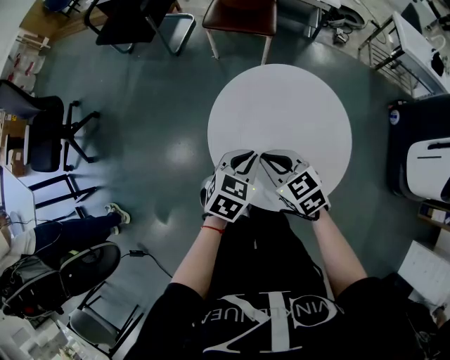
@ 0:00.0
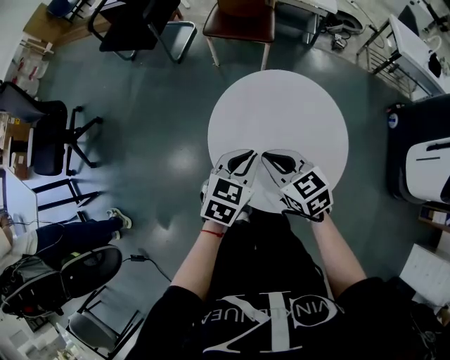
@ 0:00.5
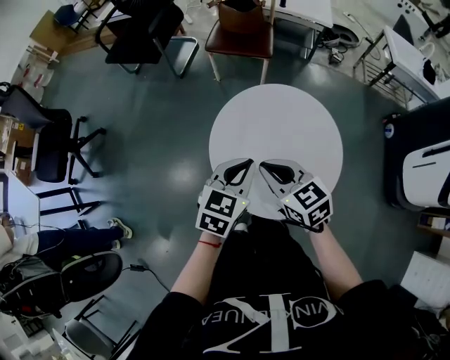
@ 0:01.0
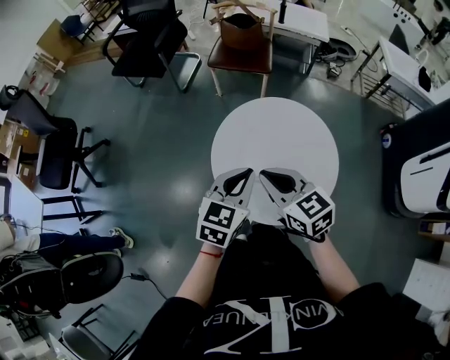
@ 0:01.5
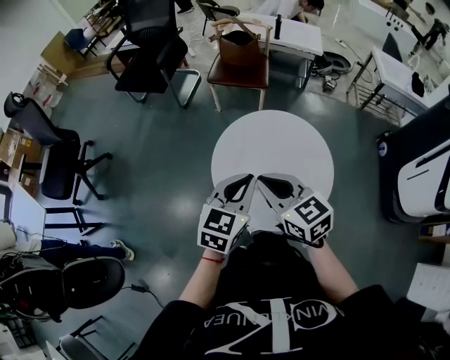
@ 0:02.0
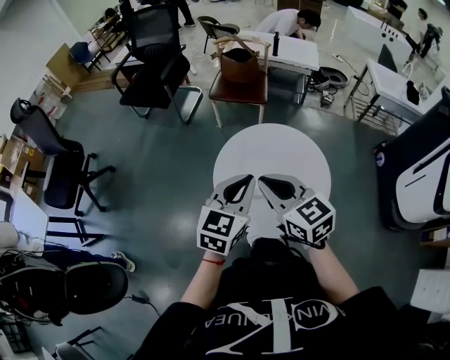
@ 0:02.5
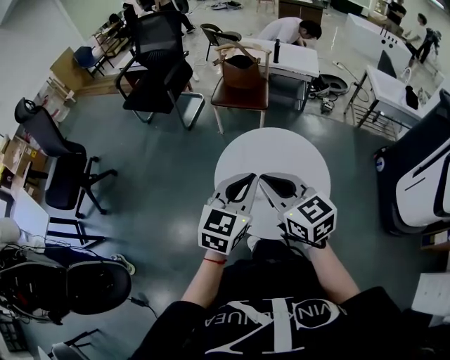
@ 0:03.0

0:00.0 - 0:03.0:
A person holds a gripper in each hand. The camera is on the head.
0:00.0 - 0:01.5: The grippers both shift upward by roughly 15 cm.
0:01.5 - 0:03.0: The grippers both shift upward by approximately 10 cm.

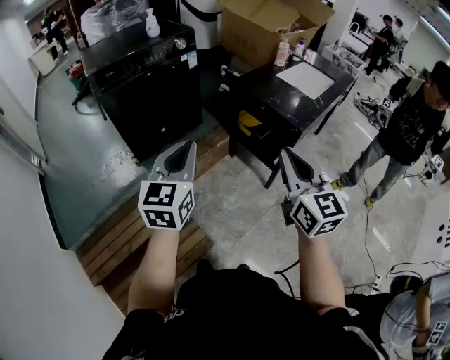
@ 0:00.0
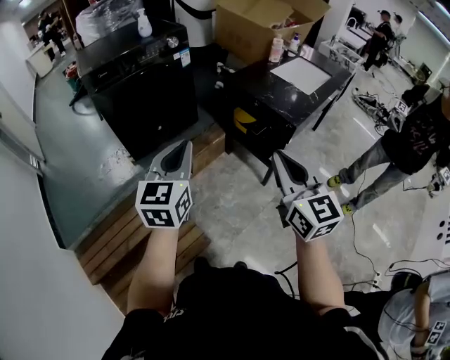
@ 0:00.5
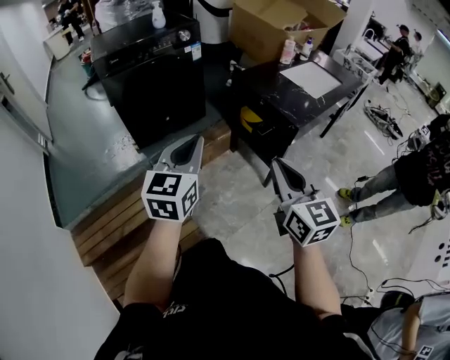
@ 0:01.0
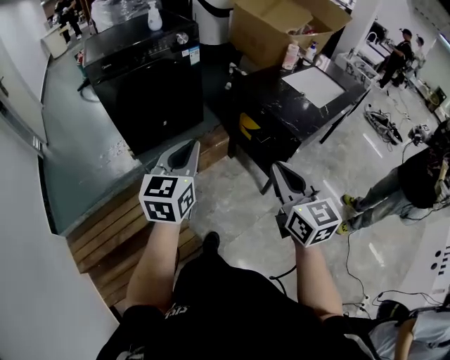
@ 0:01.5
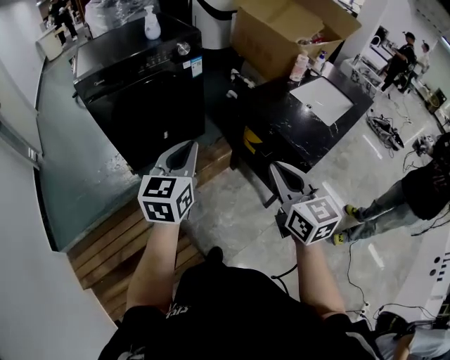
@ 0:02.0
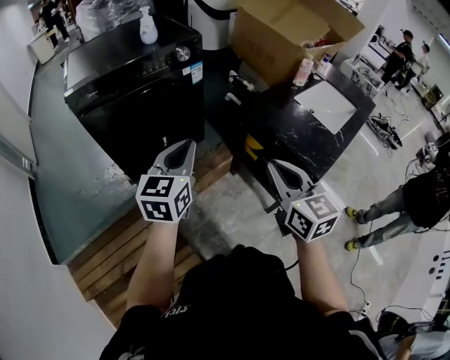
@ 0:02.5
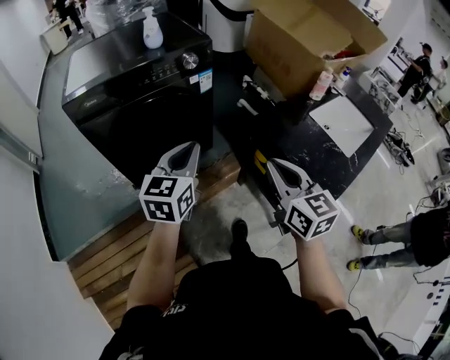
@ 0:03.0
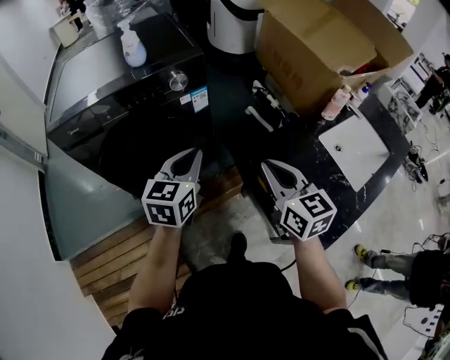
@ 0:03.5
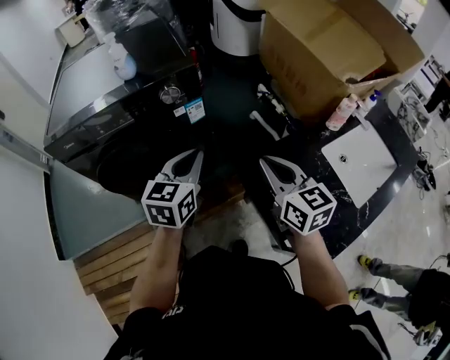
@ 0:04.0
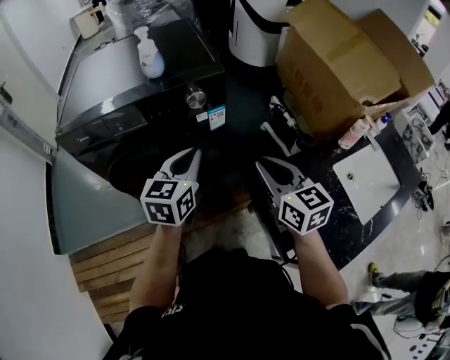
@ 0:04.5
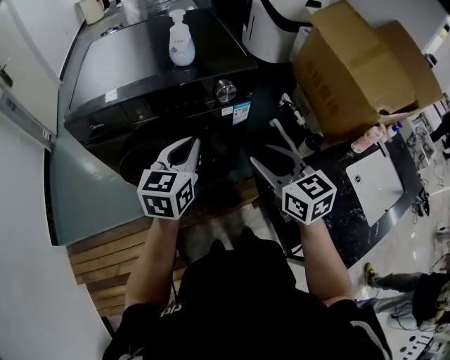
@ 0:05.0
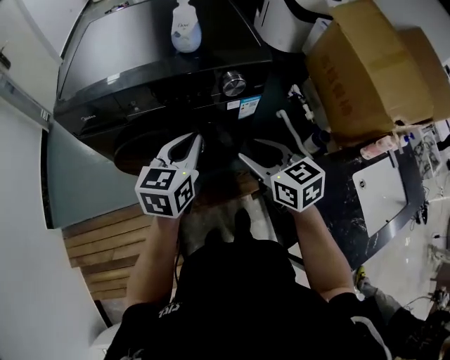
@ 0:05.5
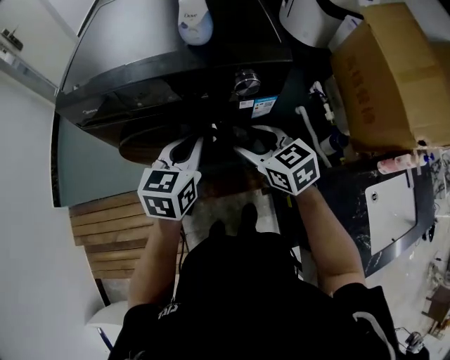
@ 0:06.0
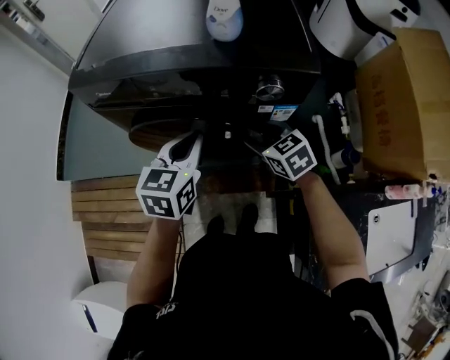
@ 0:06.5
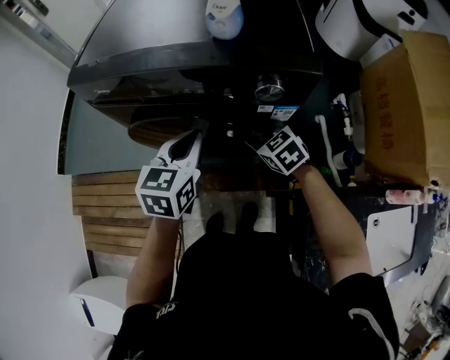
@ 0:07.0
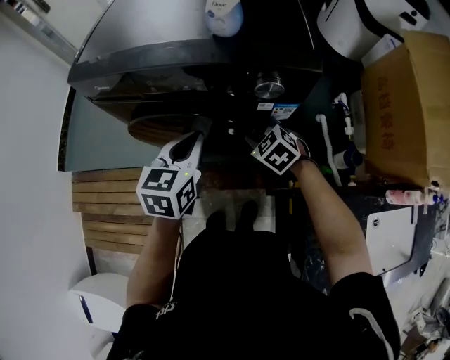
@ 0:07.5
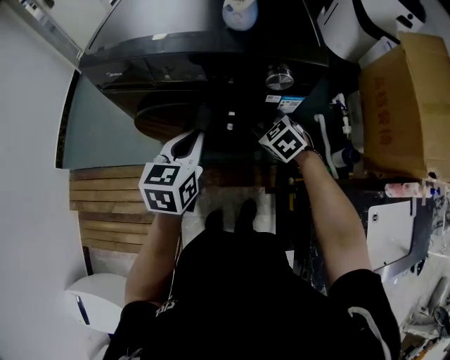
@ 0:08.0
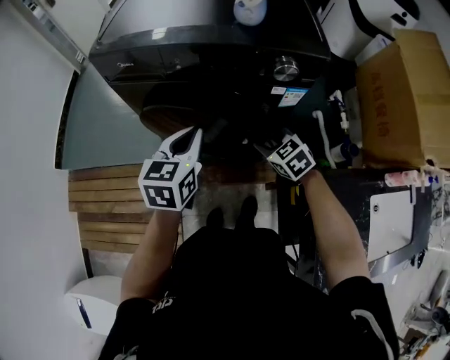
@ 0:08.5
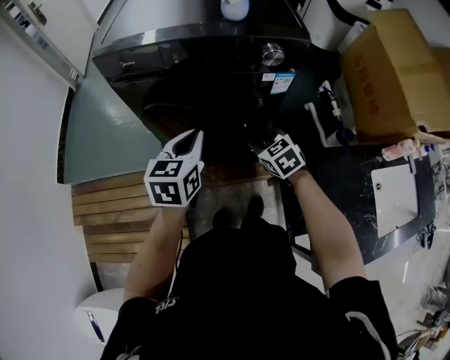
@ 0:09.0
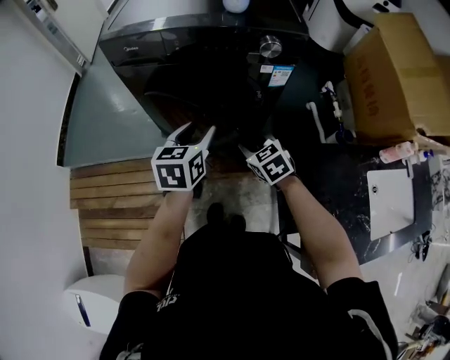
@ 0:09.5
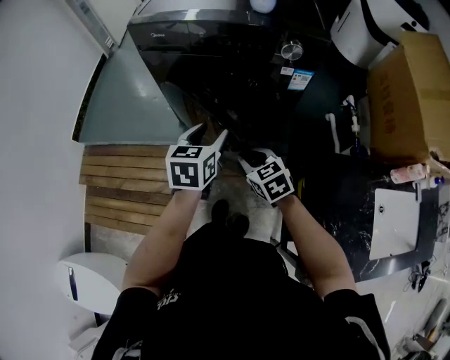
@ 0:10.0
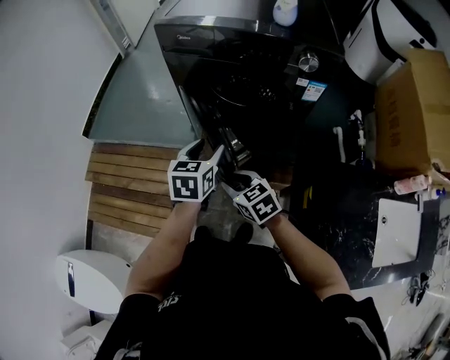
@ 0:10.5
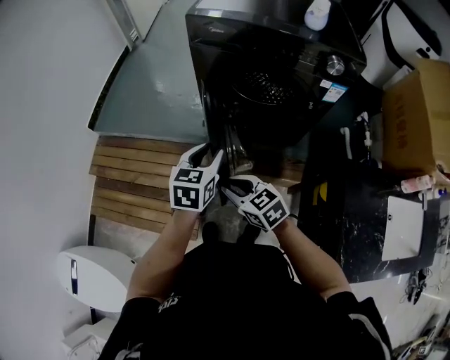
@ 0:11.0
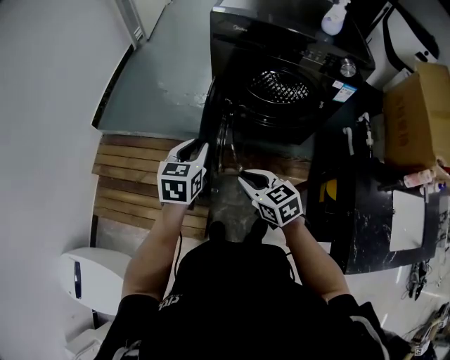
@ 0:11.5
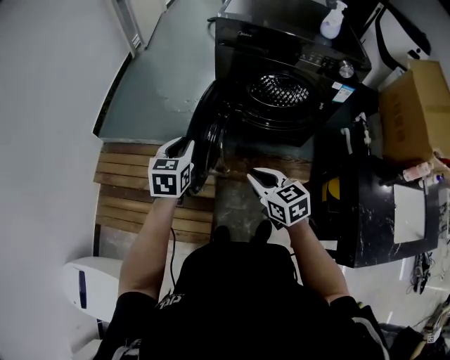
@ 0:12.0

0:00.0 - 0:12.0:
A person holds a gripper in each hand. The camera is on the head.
0:00.0 - 0:02.0: The two grippers go approximately 15 cm forward.
0:02.0 - 0:04.0: The two grippers go some 35 cm forward.
0:04.0 - 0:06.0: The left gripper moves to the left and forward, roughly 20 cm, while the right gripper is displaced to the left, forward and downward by about 30 cm, changes its angle by some 40 degrees, and opens up.
0:06.0 - 0:08.0: The left gripper moves to the left, roughly 5 cm, while the right gripper goes some 10 cm downward and forward, and swivels roughly 30 degrees.
0:08.0 - 0:10.0: The right gripper shifts roughly 25 cm backward and to the left; the left gripper goes approximately 10 cm backward, and opens up.
0:10.0 - 0:12.0: The grippers both shift to the left by approximately 30 cm. The left gripper closes up.

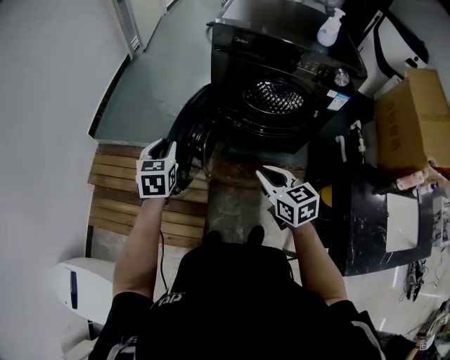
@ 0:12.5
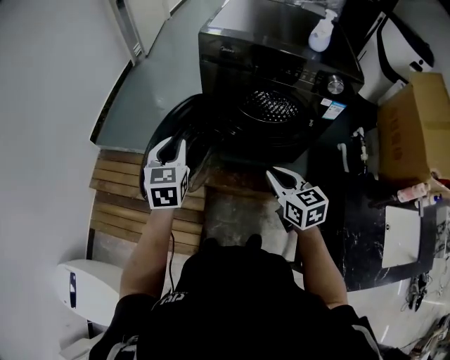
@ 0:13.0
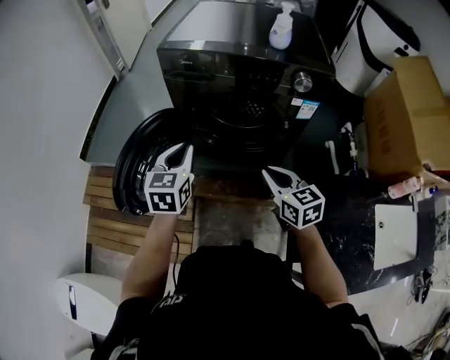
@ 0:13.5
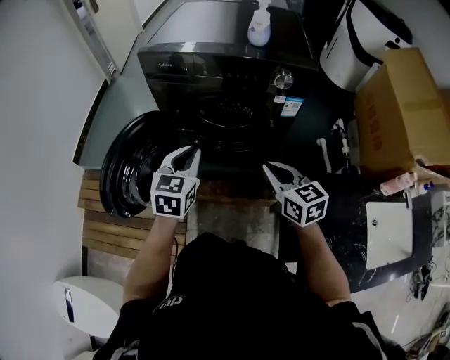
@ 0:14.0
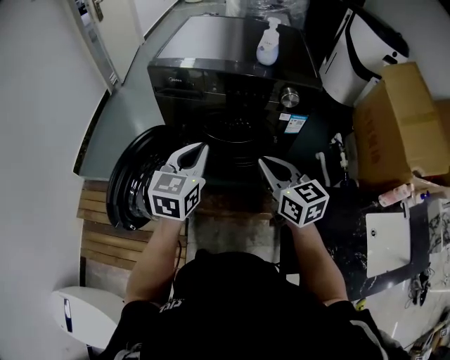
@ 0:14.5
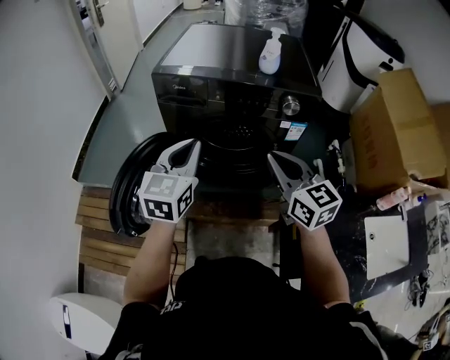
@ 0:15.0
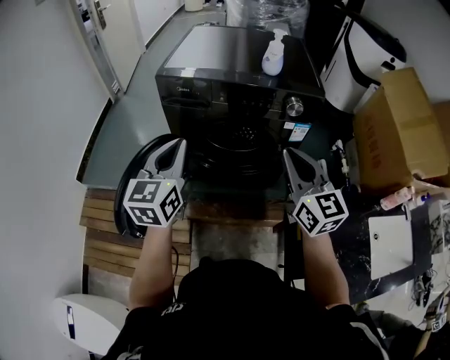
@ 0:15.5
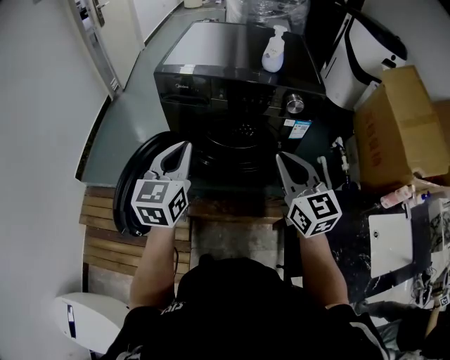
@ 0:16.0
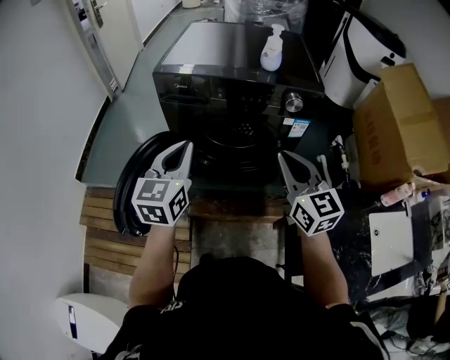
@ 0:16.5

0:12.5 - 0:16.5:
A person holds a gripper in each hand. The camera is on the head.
0:12.5 - 0:14.5: The left gripper moves to the right and upward, some 35 cm, swivels about 30 degrees, and closes up; the right gripper travels to the right, upward and forward by some 25 cm.
0:14.5 - 0:16.5: The right gripper shifts some 5 cm upward. The left gripper shifts approximately 5 cm to the left.

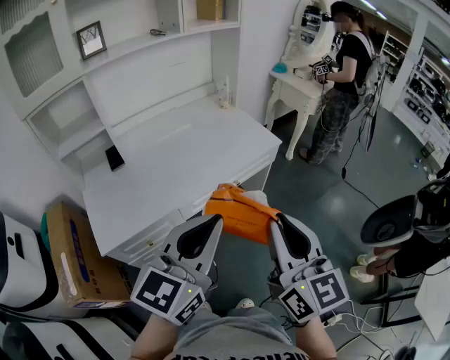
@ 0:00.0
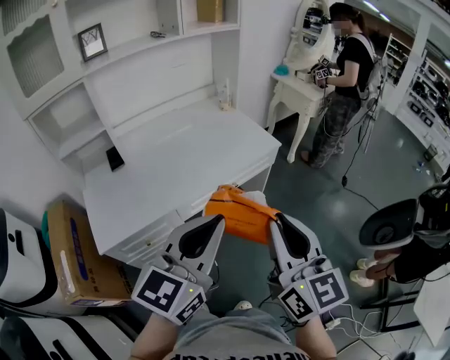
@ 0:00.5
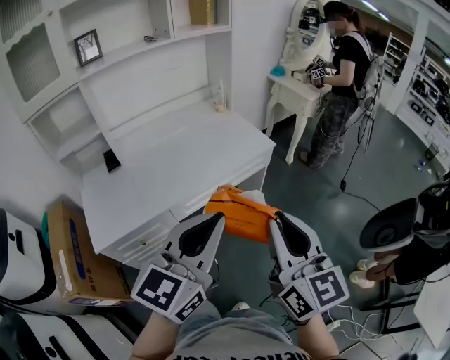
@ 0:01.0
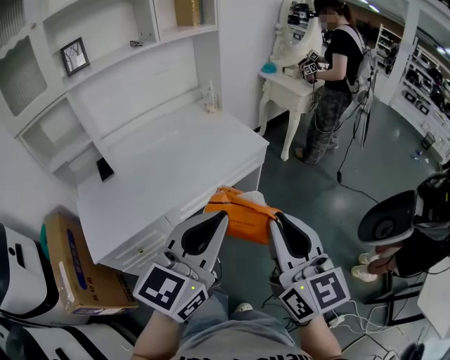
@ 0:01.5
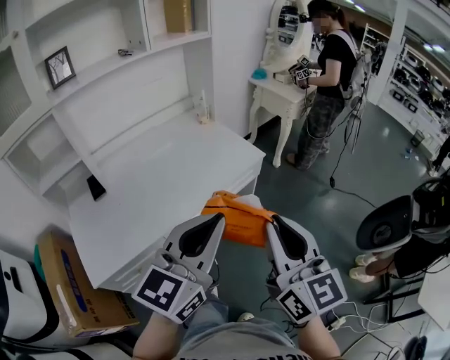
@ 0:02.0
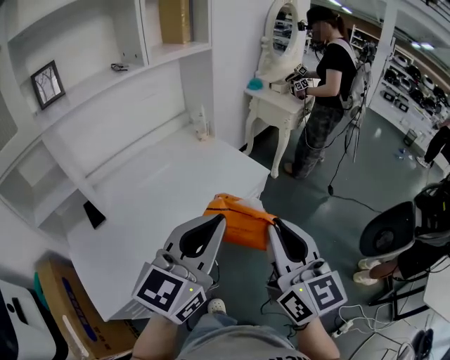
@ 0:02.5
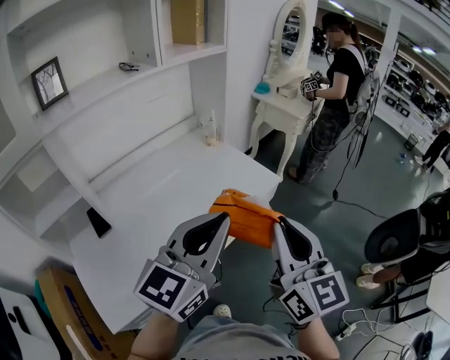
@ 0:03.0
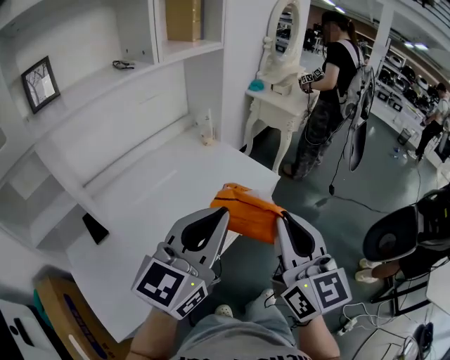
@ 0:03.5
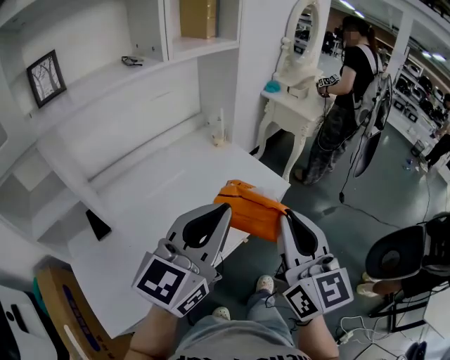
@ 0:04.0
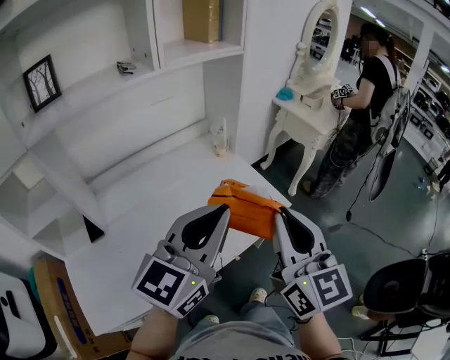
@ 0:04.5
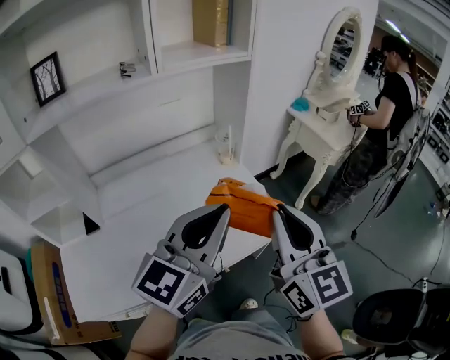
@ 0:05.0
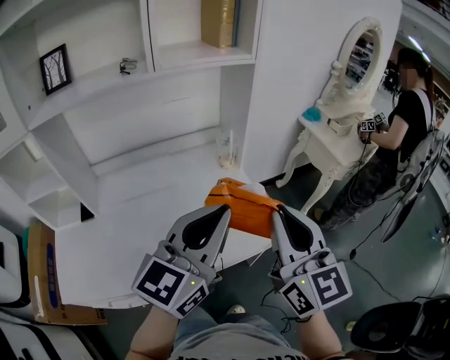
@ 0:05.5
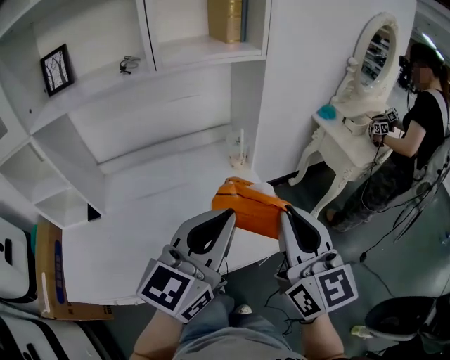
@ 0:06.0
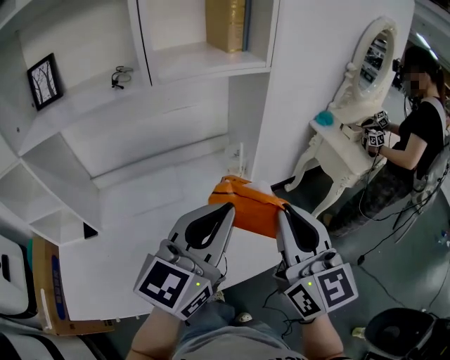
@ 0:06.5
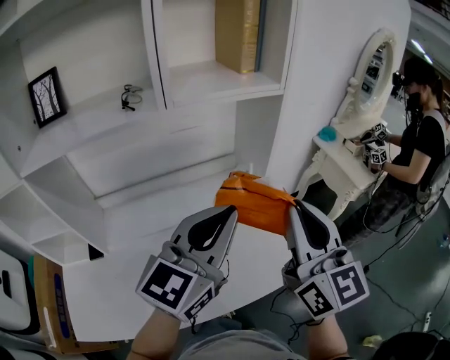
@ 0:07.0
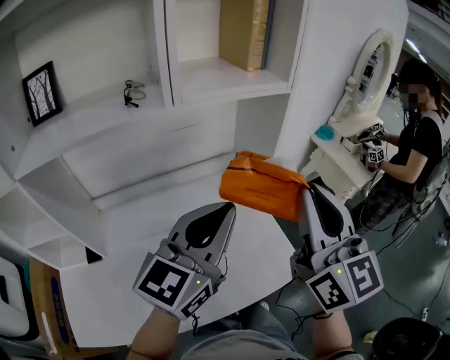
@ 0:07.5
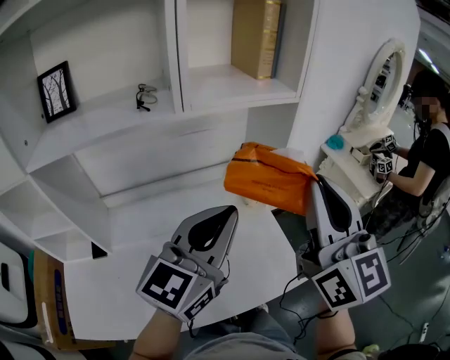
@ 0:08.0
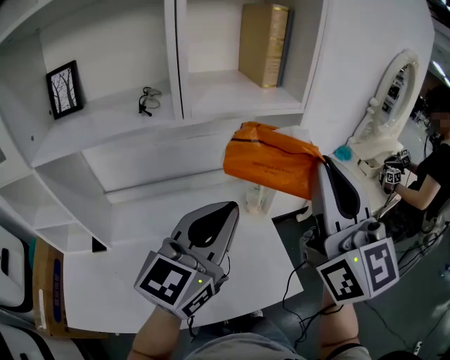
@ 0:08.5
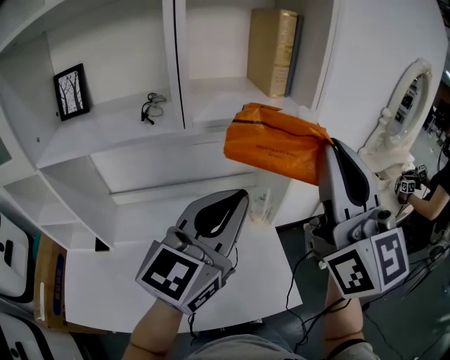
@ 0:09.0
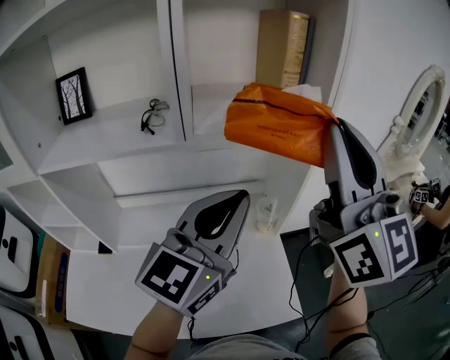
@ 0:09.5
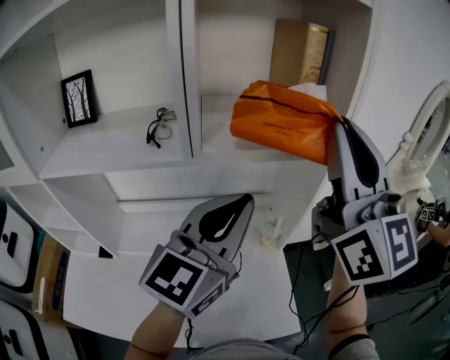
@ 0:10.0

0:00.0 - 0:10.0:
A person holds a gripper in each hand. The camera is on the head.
0:00.0 - 0:02.0: The two grippers go some 10 cm forward.
0:02.0 - 0:04.0: Both grippers travel together forward and to the left, approximately 20 cm.
0:04.0 - 0:06.0: The grippers both shift forward and to the right by roughly 20 cm. The left gripper swivels approximately 20 degrees. Meanwhile the right gripper rotates about 30 degrees.
0:06.0 - 0:08.0: The left gripper moves forward and to the left, roughly 15 cm. The right gripper shifts some 15 cm upward, forward and to the left.
0:08.0 - 0:10.0: The grippers both shift forward and upward by approximately 15 cm.
